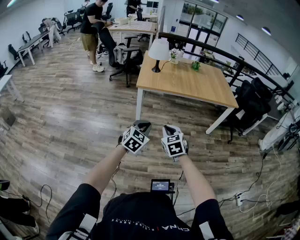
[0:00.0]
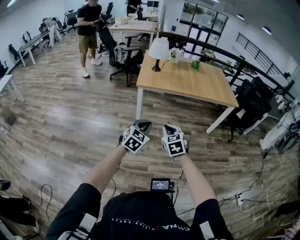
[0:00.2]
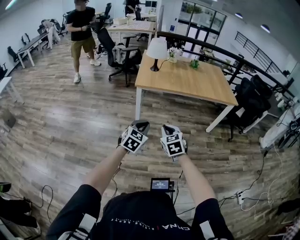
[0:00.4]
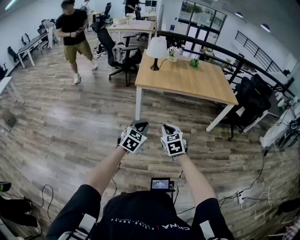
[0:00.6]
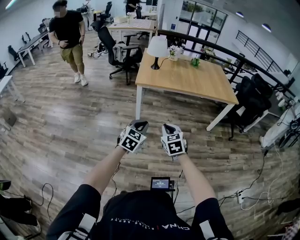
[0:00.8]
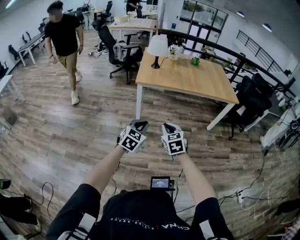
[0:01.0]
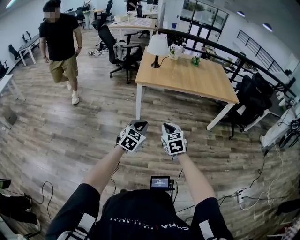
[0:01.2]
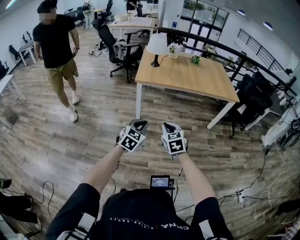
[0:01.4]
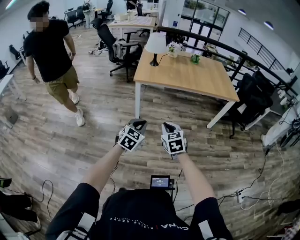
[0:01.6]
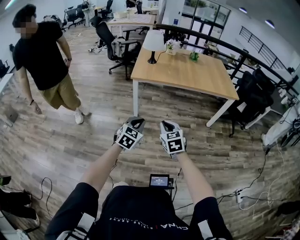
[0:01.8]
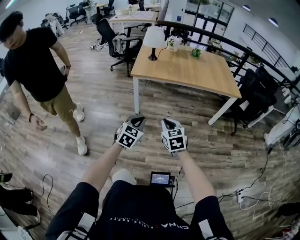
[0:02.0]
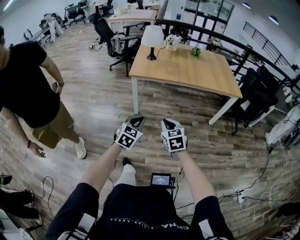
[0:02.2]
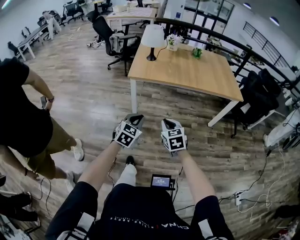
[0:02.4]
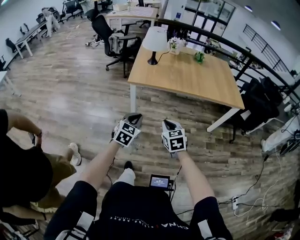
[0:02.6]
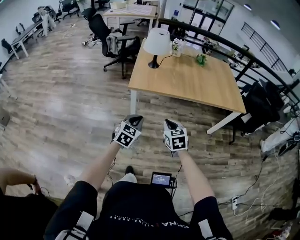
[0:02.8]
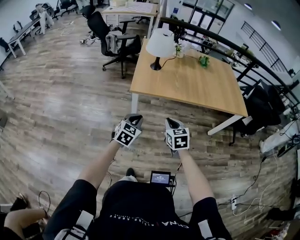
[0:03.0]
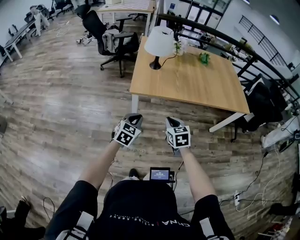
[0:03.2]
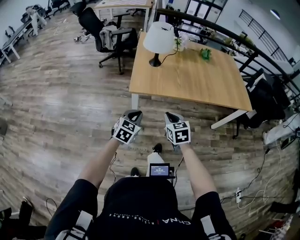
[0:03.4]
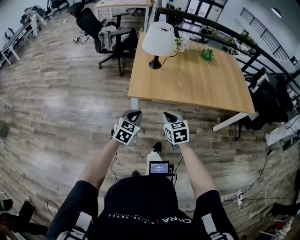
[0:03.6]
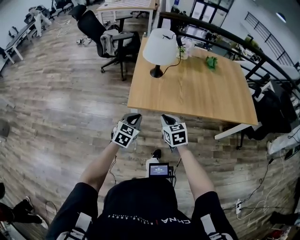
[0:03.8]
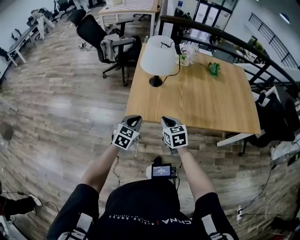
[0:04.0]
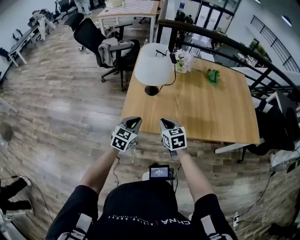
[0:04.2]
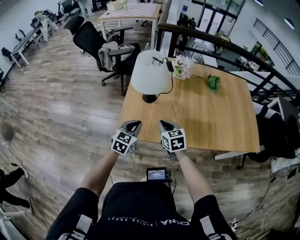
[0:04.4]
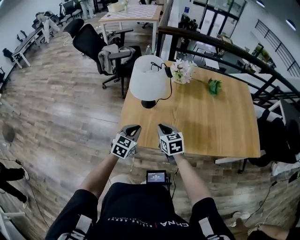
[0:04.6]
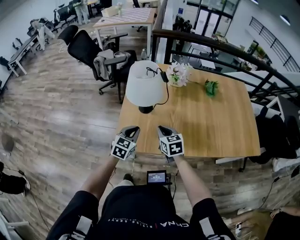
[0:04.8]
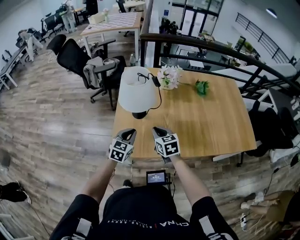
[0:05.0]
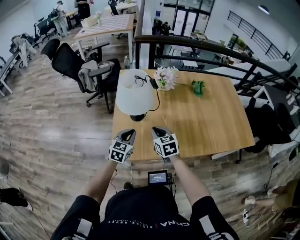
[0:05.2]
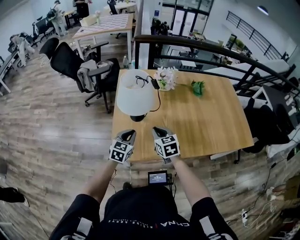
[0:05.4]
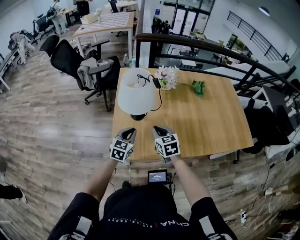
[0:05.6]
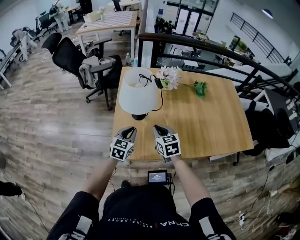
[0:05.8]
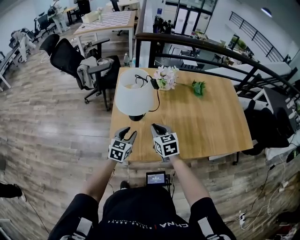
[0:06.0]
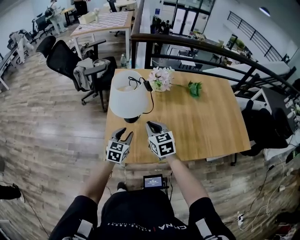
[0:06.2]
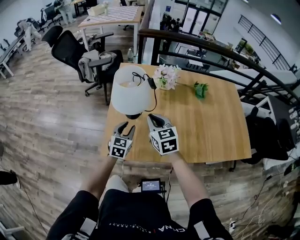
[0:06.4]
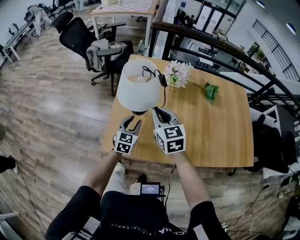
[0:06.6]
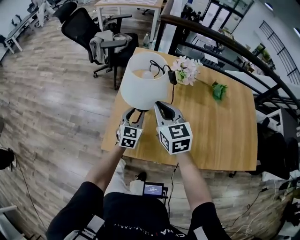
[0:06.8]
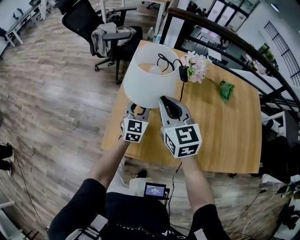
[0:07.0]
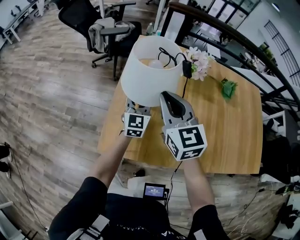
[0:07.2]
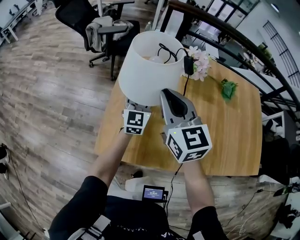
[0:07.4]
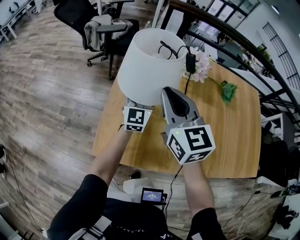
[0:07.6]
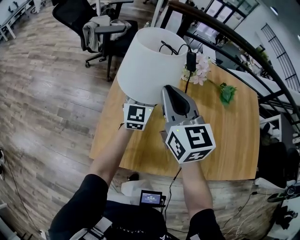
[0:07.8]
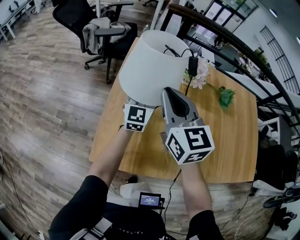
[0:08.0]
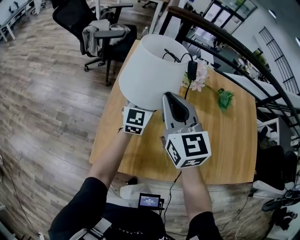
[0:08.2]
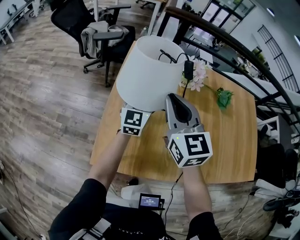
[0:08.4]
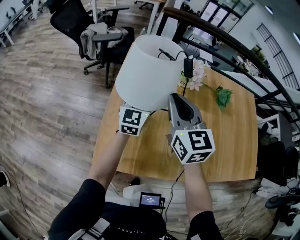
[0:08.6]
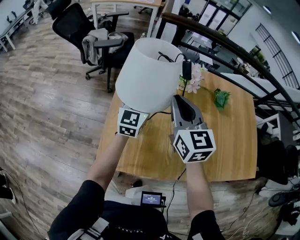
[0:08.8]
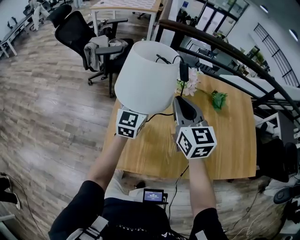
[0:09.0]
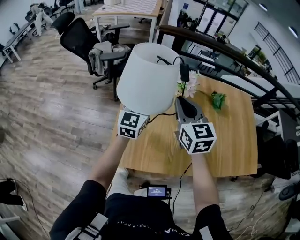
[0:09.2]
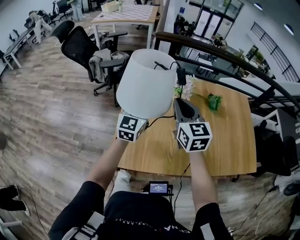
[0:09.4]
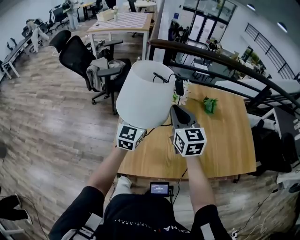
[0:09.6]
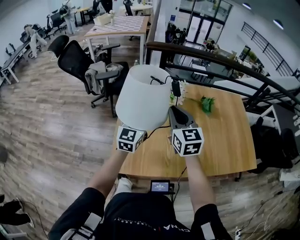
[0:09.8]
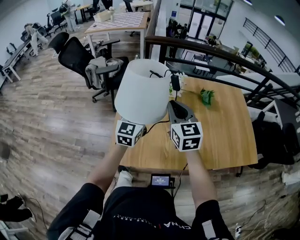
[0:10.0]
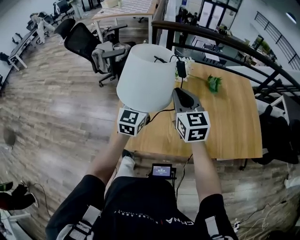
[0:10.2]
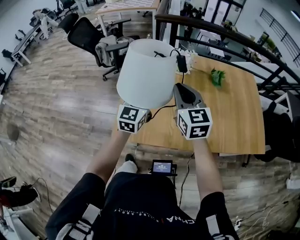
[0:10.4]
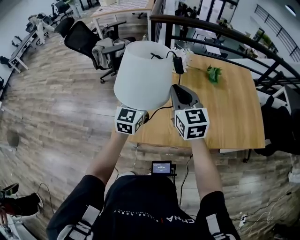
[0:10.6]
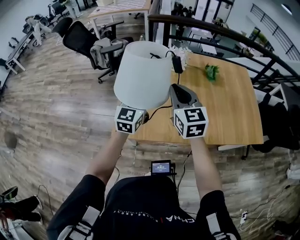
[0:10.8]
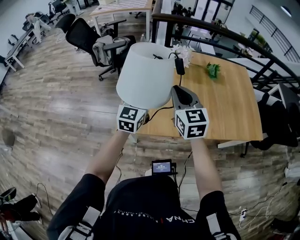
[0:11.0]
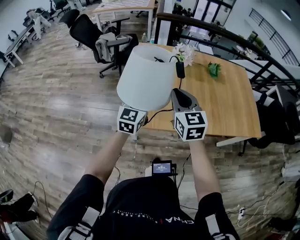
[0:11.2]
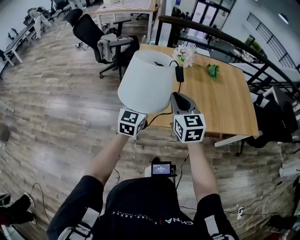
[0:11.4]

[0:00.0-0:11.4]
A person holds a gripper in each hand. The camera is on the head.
0:00.0 to 0:01.4: The grippers move only a little.
0:01.4 to 0:02.8: Both grippers move forward, approximately 30 cm.
0:02.8 to 0:04.2: The pair of grippers is taken forward, some 40 cm.
0:04.2 to 0:05.6: Both grippers move forward, approximately 15 cm.
0:05.6 to 0:07.2: The left gripper moves forward, about 20 cm, changes its angle by about 30 degrees, and opens its fingers; the right gripper goes some 15 cm forward and upward, and rotates some 20 degrees.
0:07.2 to 0:08.6: The left gripper shifts approximately 10 cm forward and upward; the right gripper moves forward, about 5 cm.
0:08.6 to 0:10.0: The right gripper goes about 20 cm upward, backward and to the right. The left gripper goes roughly 20 cm upward and backward.
0:10.0 to 0:11.4: The grippers both shift backward and to the left by some 25 cm.

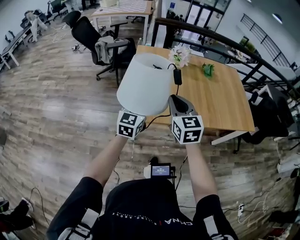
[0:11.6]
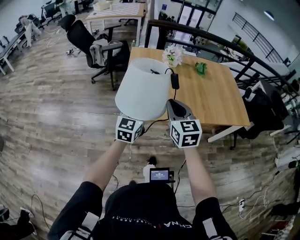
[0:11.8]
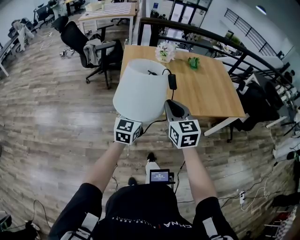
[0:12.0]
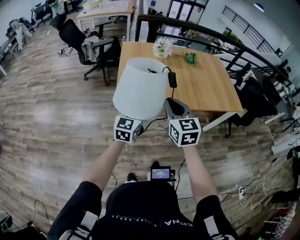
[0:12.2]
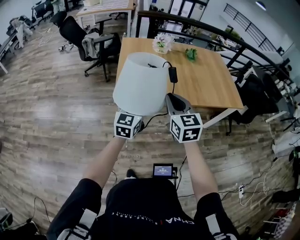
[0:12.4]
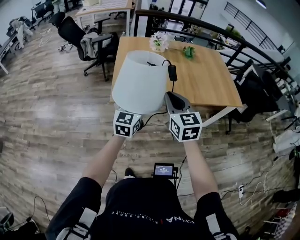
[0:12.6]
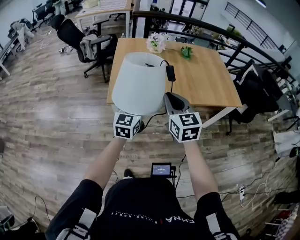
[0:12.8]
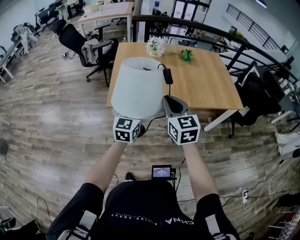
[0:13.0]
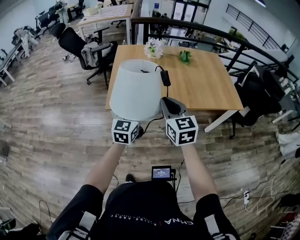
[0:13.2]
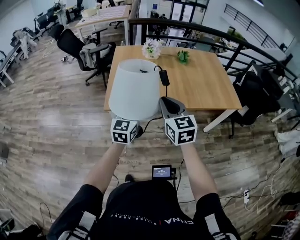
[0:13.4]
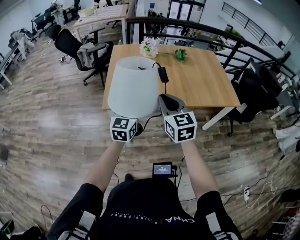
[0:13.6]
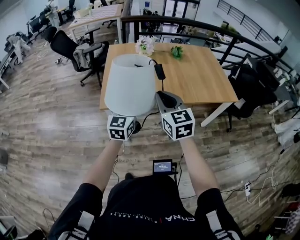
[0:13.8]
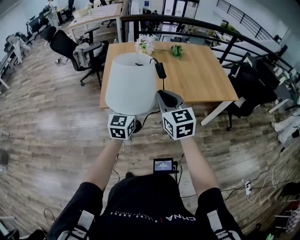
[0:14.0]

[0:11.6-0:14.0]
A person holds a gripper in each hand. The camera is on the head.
0:11.6 to 0:12.8: The grippers both shift backward and to the right by approximately 20 cm.
0:12.8 to 0:14.0: Both grippers move to the right, some 5 cm.

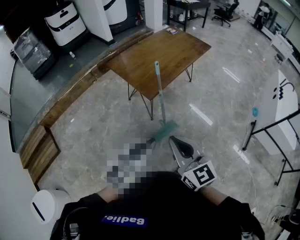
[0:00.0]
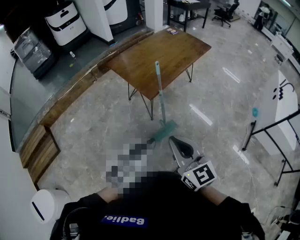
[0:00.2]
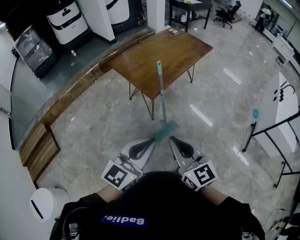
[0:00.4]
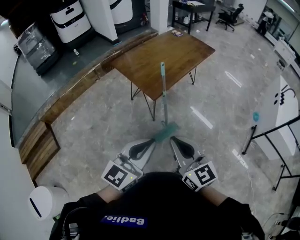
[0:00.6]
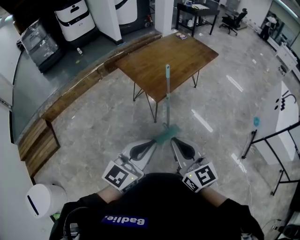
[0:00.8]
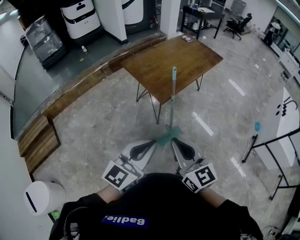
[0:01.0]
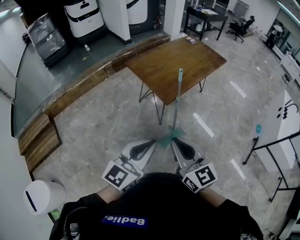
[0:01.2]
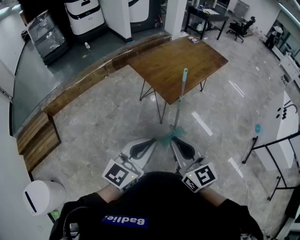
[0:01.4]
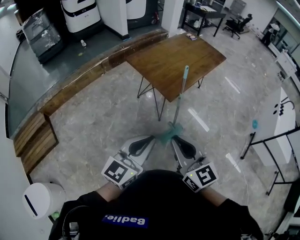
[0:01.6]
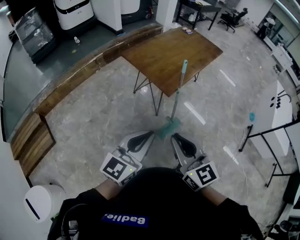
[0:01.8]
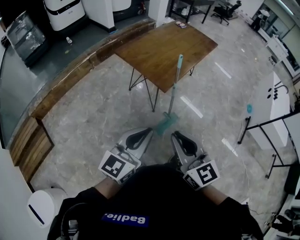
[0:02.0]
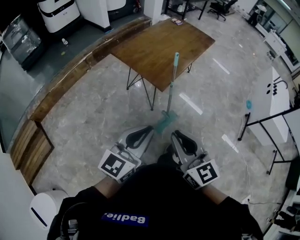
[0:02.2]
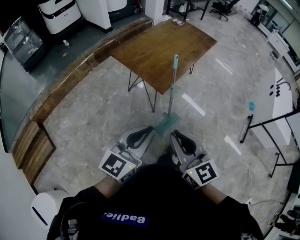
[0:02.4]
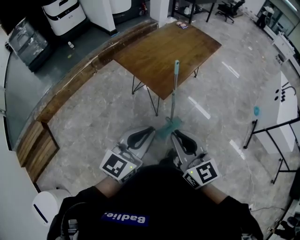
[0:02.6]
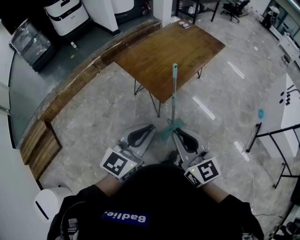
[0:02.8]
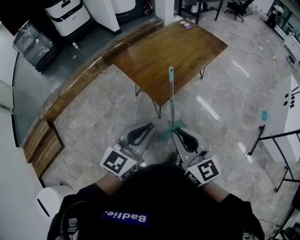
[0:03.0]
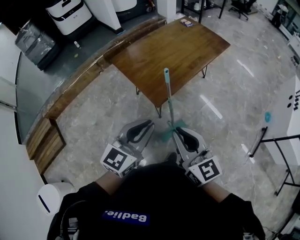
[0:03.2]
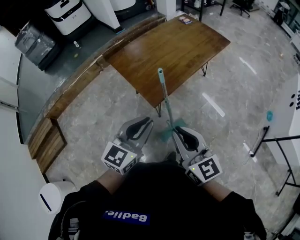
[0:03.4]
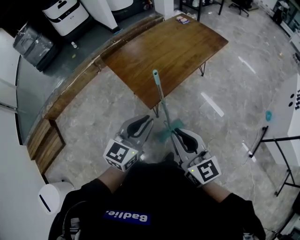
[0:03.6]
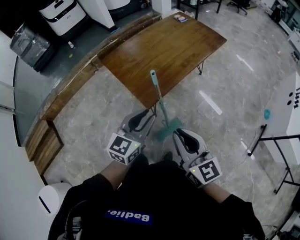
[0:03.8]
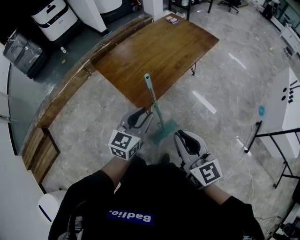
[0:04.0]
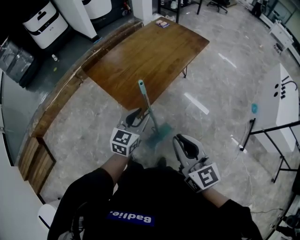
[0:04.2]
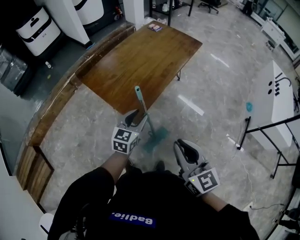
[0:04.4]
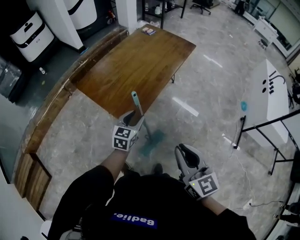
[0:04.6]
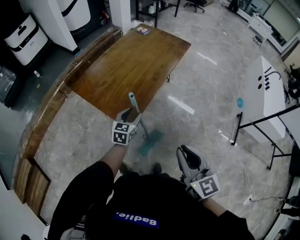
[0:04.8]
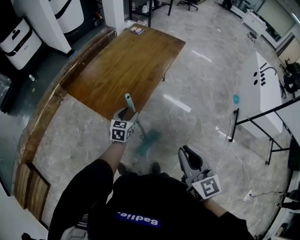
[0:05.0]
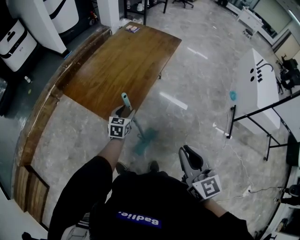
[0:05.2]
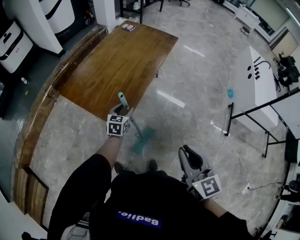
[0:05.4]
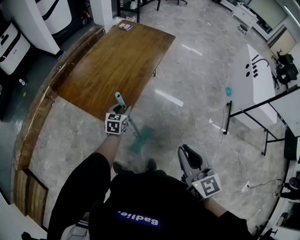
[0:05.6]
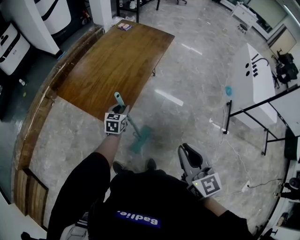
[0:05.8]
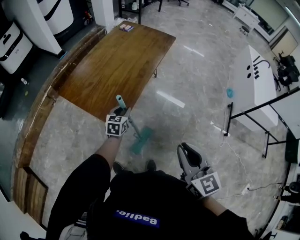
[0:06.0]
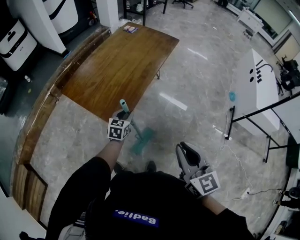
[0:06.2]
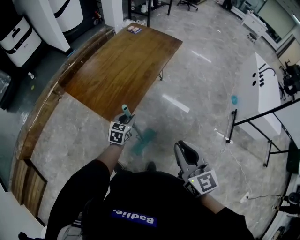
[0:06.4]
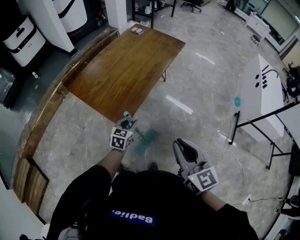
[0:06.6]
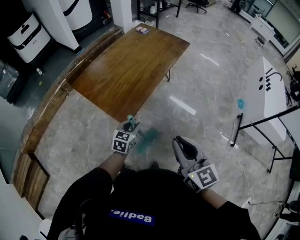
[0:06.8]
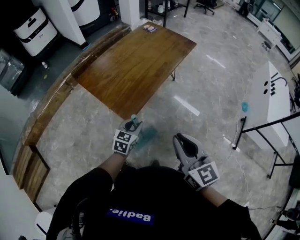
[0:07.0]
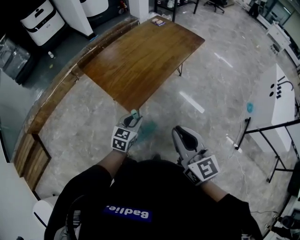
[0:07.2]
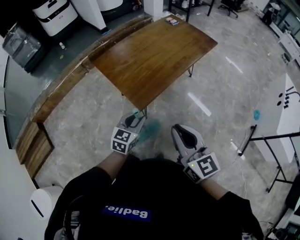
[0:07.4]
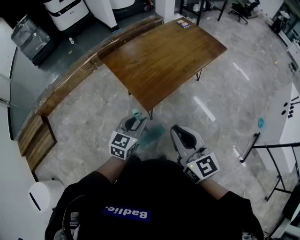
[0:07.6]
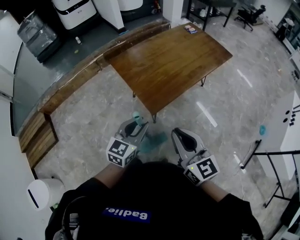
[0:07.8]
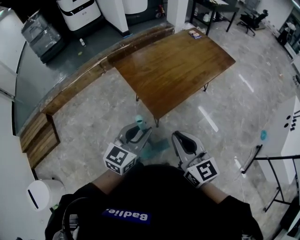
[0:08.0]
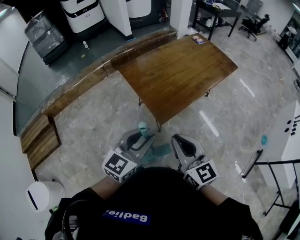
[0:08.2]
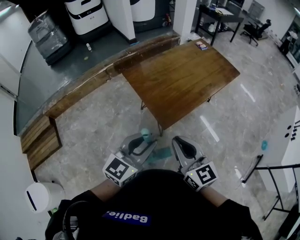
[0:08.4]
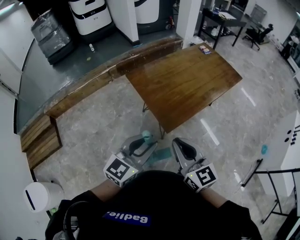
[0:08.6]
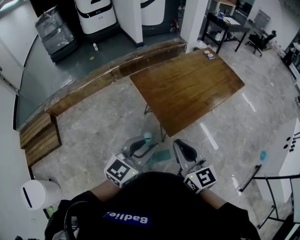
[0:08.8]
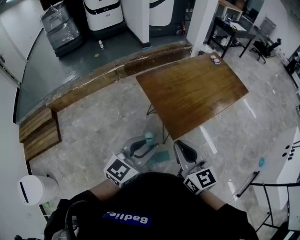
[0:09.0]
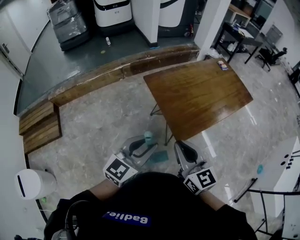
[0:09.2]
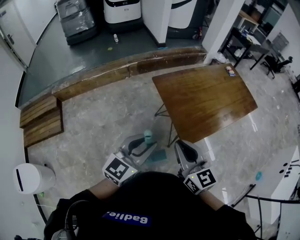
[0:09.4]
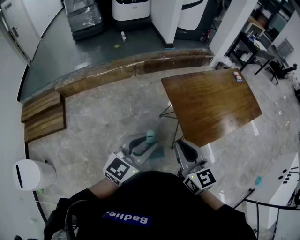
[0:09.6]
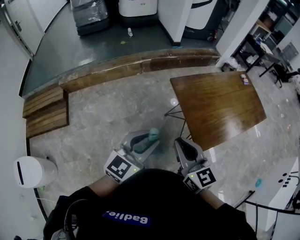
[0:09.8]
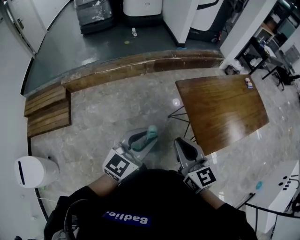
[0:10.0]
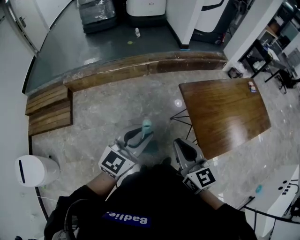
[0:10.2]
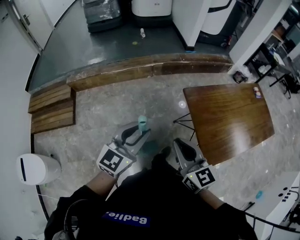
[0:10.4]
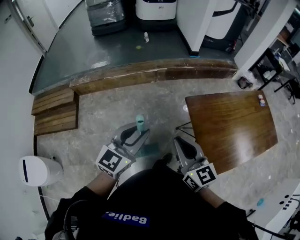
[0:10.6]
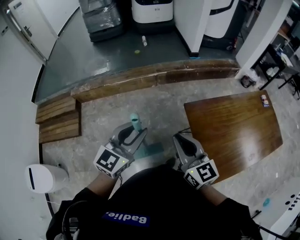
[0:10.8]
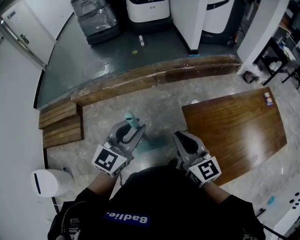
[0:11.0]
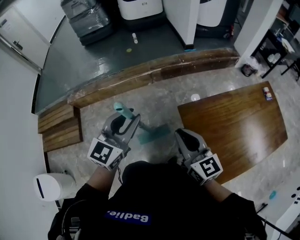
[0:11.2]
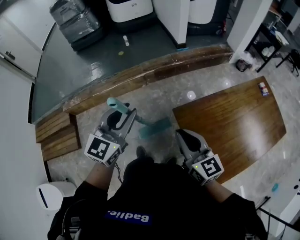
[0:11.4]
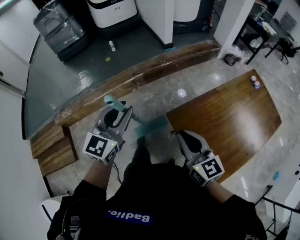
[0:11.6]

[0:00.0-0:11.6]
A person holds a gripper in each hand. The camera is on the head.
0:00.0 to 0:01.4: Both grippers move to the left, about 10 cm.
0:01.4 to 0:02.8: Both grippers travel together forward, approximately 10 cm.
0:02.8 to 0:04.4: The right gripper heads to the right and forward, covering some 15 cm. The left gripper goes roughly 30 cm forward, downward and to the right, and opens.
0:04.4 to 0:05.8: The left gripper moves downward and forward, about 15 cm; the right gripper is displaced to the right by about 5 cm.
0:05.8 to 0:07.2: The right gripper changes its angle by some 20 degrees; the left gripper travels backward by some 15 cm.
0:07.2 to 0:08.8: The right gripper shifts some 20 cm to the left, while the left gripper is displaced upward and to the left by about 25 cm, and changes its angle by approximately 20 degrees.
0:08.8 to 0:10.2: The left gripper moves to the left, some 30 cm, while the right gripper goes approximately 30 cm to the left and forward.
0:10.2 to 0:11.6: Both grippers move forward, roughly 35 cm.
